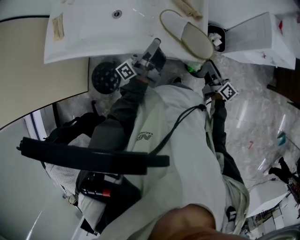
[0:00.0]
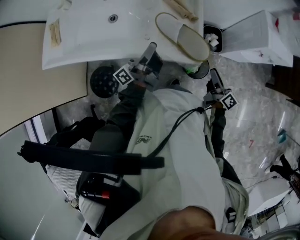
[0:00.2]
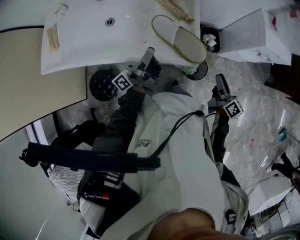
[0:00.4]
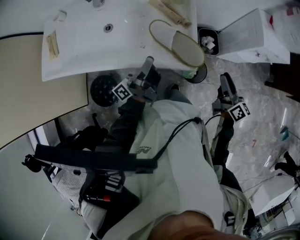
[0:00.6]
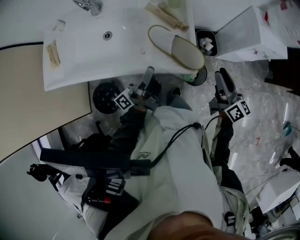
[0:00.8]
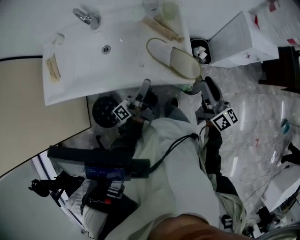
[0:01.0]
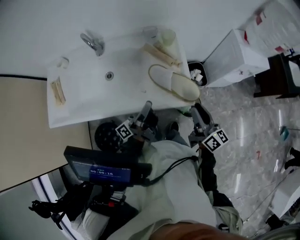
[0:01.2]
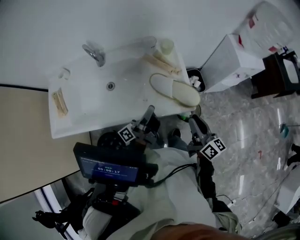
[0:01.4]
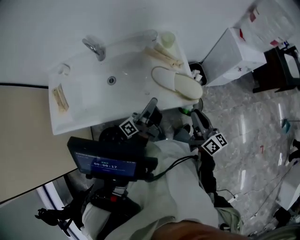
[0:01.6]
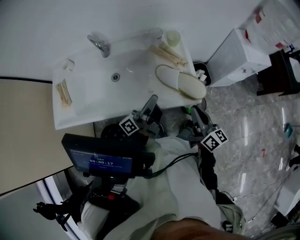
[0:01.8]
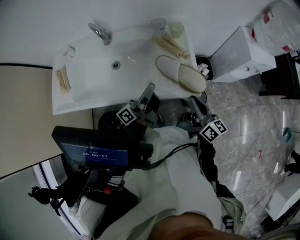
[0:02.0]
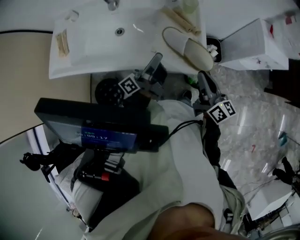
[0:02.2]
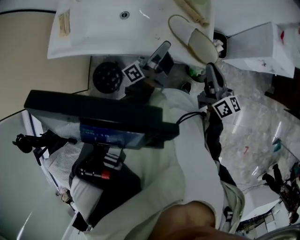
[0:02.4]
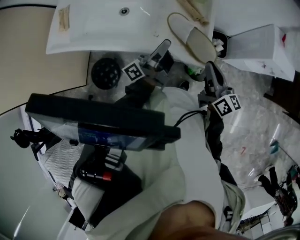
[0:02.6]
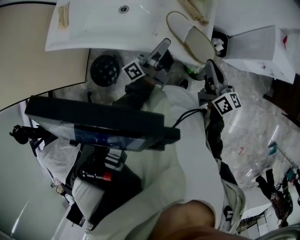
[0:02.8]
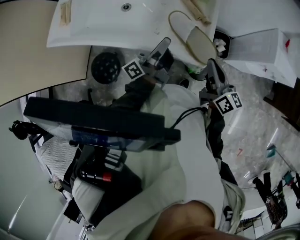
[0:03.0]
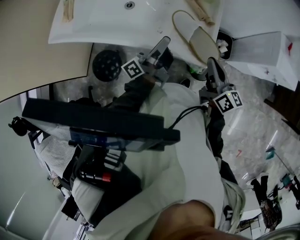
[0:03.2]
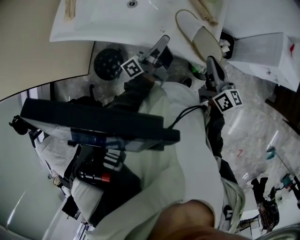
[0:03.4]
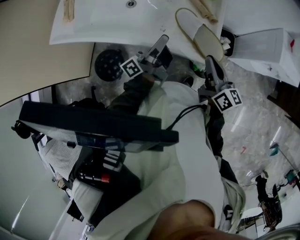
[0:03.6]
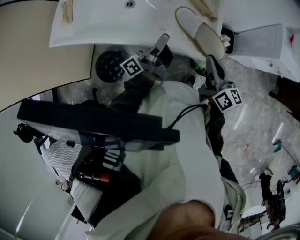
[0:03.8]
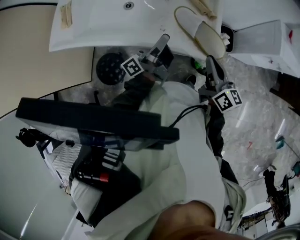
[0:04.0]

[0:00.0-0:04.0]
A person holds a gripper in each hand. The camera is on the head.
0:00.0 to 0:01.4: The right gripper goes roughly 15 cm upward, and swivels about 20 degrees.
0:01.4 to 0:02.6: The right gripper ends up some 5 cm from where it was, and closes up.

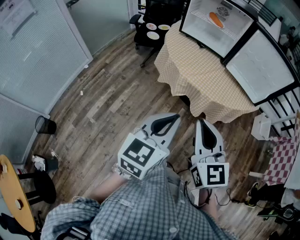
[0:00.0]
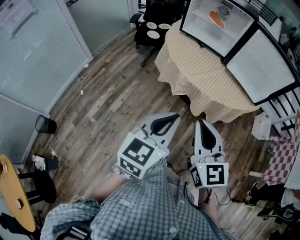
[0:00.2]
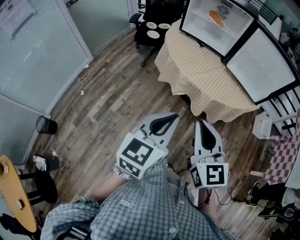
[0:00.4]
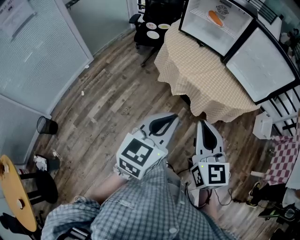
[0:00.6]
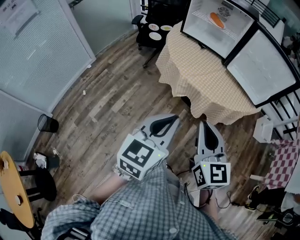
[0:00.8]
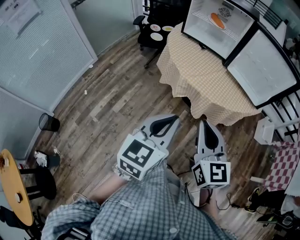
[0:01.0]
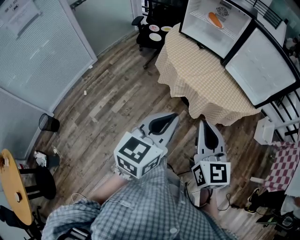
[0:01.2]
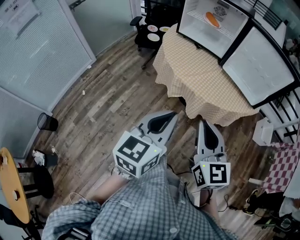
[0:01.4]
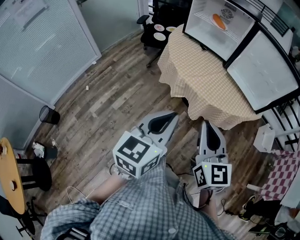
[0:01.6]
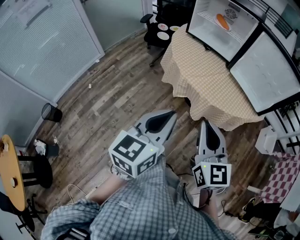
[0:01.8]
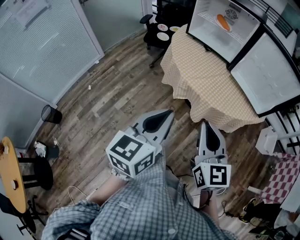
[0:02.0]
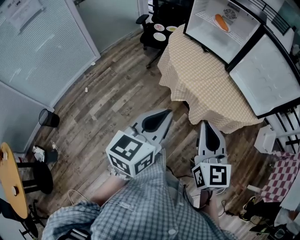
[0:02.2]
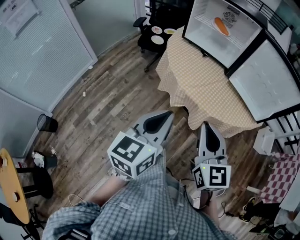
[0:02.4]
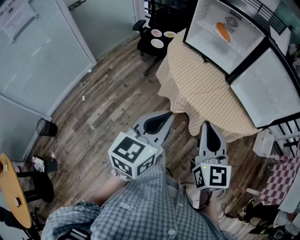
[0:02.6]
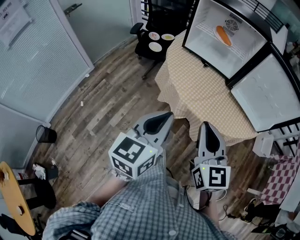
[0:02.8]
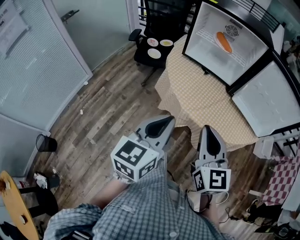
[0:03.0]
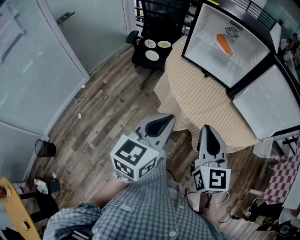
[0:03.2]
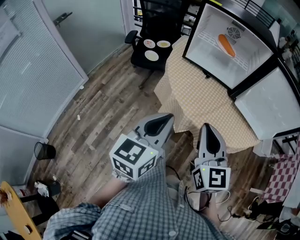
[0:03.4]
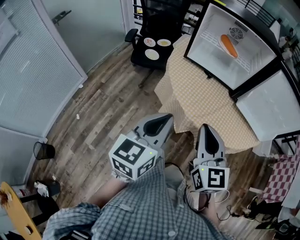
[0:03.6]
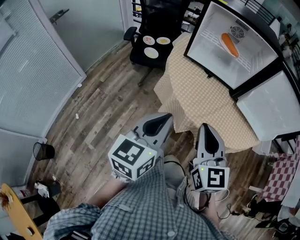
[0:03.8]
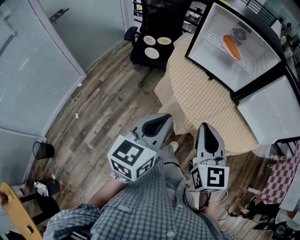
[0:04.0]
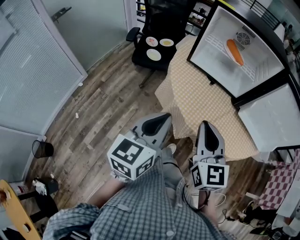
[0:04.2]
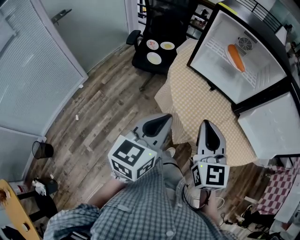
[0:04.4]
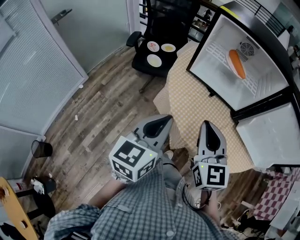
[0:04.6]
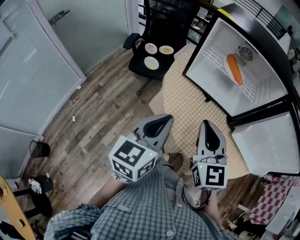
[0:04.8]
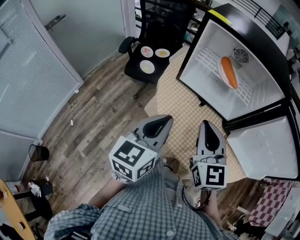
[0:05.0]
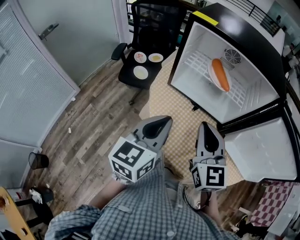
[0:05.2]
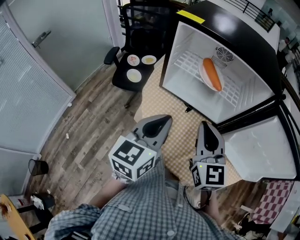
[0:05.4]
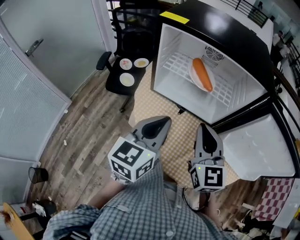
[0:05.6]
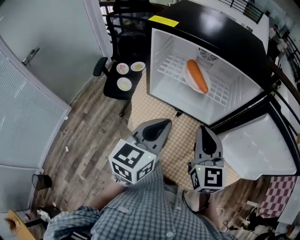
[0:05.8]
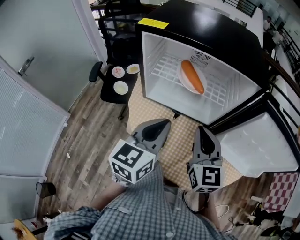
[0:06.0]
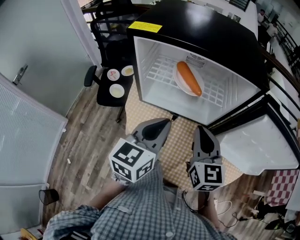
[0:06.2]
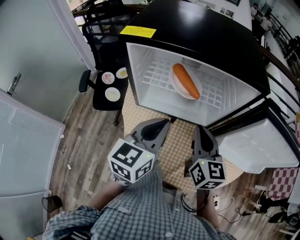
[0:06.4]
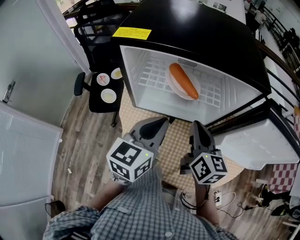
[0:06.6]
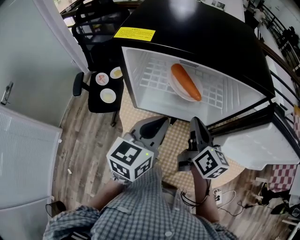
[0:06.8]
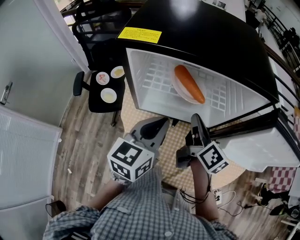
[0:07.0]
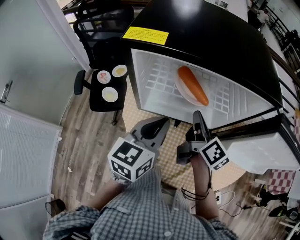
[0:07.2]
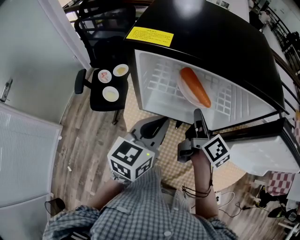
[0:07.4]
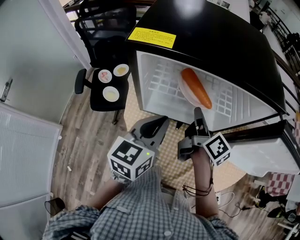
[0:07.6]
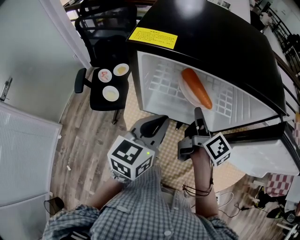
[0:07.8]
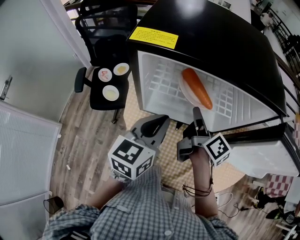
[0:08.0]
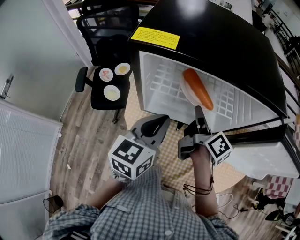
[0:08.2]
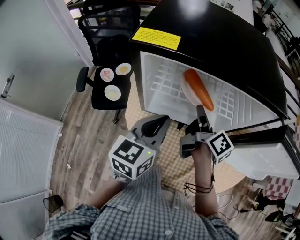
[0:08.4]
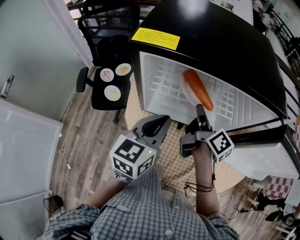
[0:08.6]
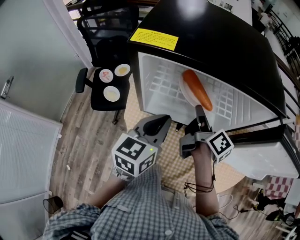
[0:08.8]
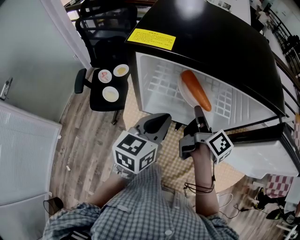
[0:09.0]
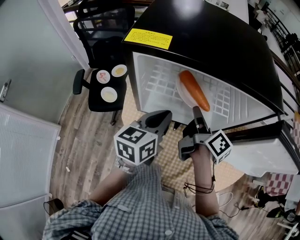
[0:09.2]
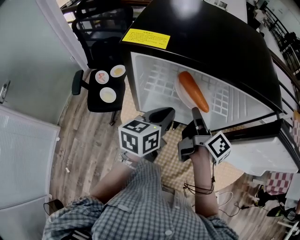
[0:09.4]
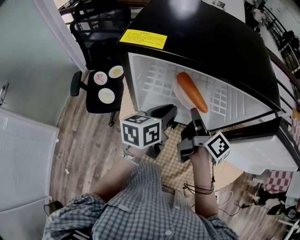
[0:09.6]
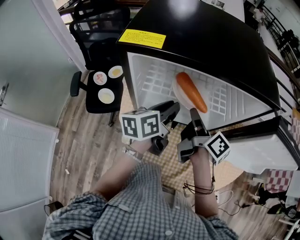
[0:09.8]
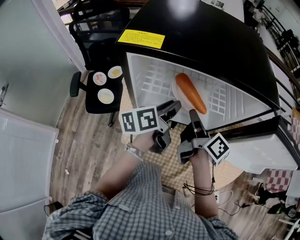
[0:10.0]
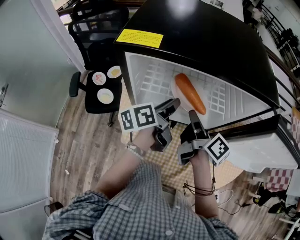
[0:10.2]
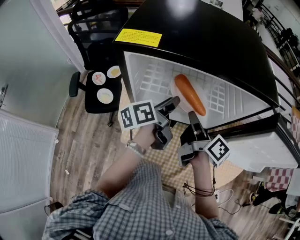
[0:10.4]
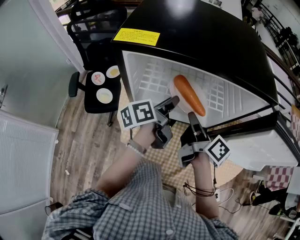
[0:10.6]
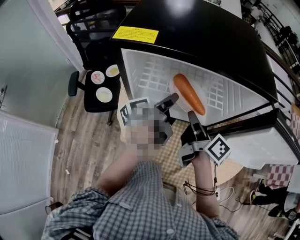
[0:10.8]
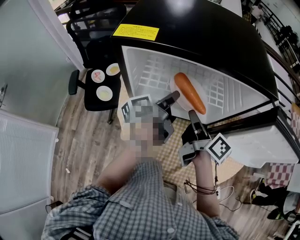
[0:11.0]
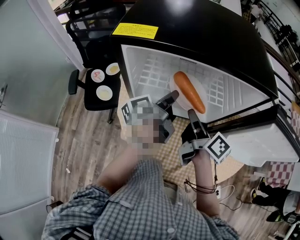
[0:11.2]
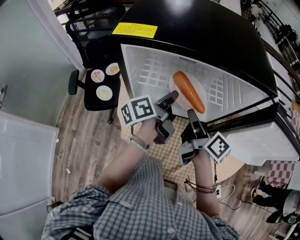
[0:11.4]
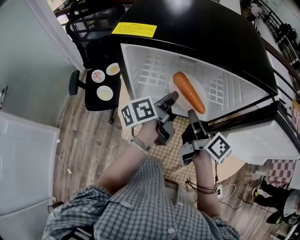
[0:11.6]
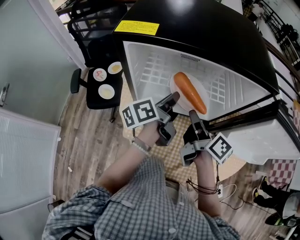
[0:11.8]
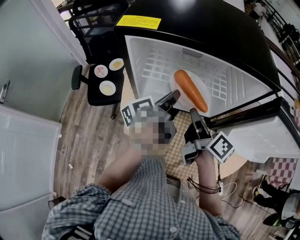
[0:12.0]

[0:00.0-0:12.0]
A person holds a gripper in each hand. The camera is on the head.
0:00.0 to 0:01.6: The right gripper moves to the right, approximately 10 cm. Meanwhile the left gripper heads to the right, covering roughly 5 cm.
0:01.6 to 0:03.0: Both grippers travel together forward and to the left, some 20 cm.
0:03.0 to 0:04.4: The two grippers go approximately 15 cm forward and to the left.
0:04.4 to 0:06.0: Both grippers move forward and to the right, about 25 cm.
0:06.0 to 0:07.6: The left gripper travels forward and to the left by about 10 cm. The right gripper heads forward, covering approximately 15 cm, and rolls clockwise, seen from behind, by about 70 degrees.
0:07.6 to 0:09.0: The grippers make only small movements.
0:09.0 to 0:10.4: The left gripper shifts about 10 cm forward, rotates around the line of its fingers by about 50 degrees, counterclockwise from behind, and opens.
0:10.4 to 0:12.0: There are only small adjustments of the grippers.

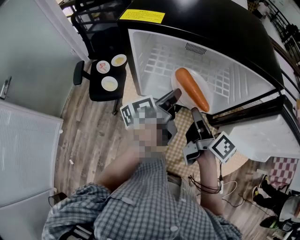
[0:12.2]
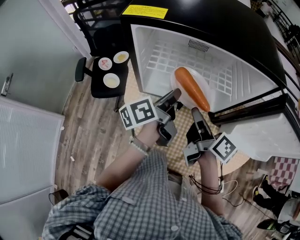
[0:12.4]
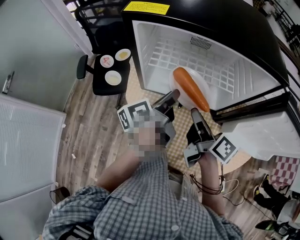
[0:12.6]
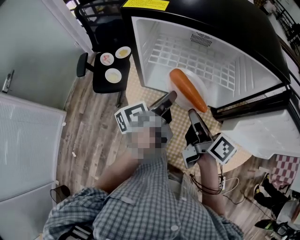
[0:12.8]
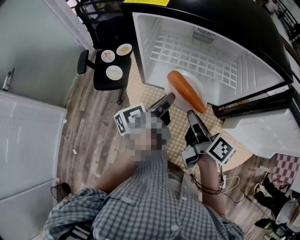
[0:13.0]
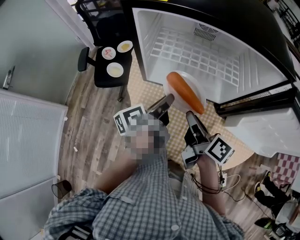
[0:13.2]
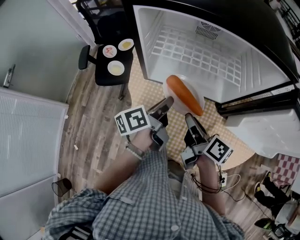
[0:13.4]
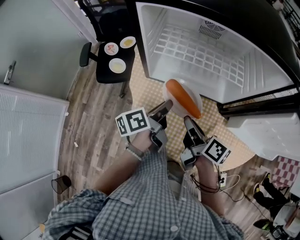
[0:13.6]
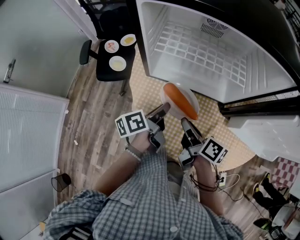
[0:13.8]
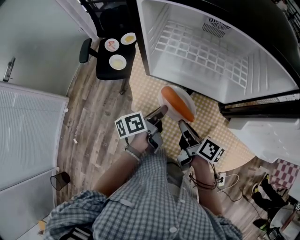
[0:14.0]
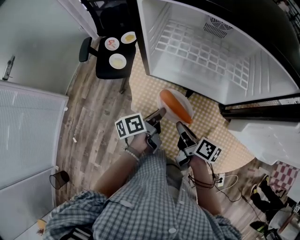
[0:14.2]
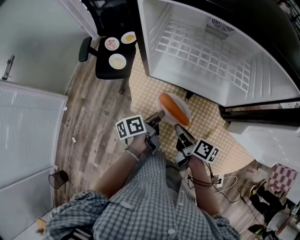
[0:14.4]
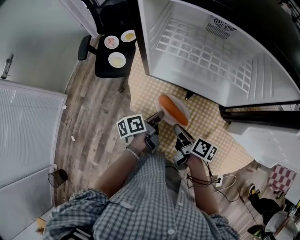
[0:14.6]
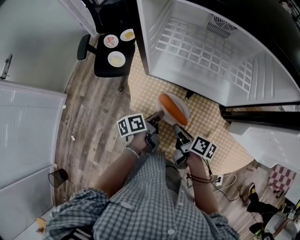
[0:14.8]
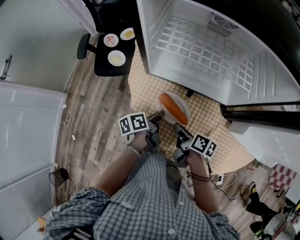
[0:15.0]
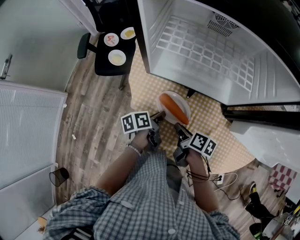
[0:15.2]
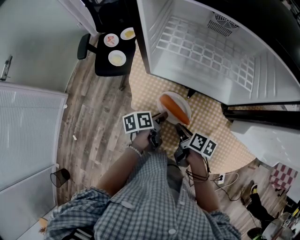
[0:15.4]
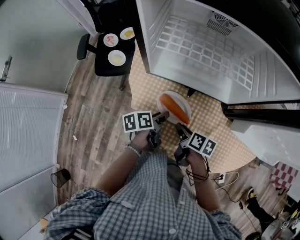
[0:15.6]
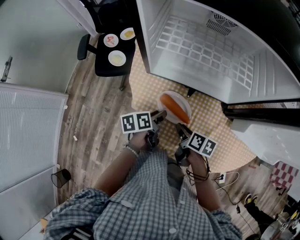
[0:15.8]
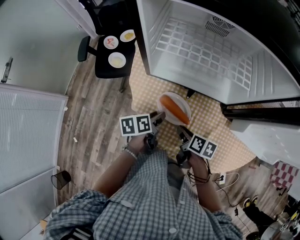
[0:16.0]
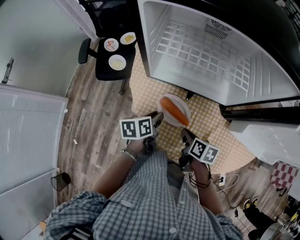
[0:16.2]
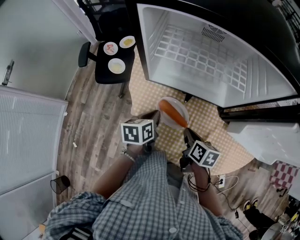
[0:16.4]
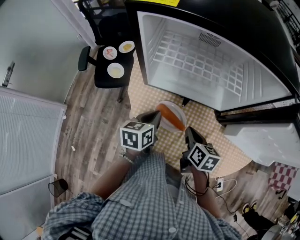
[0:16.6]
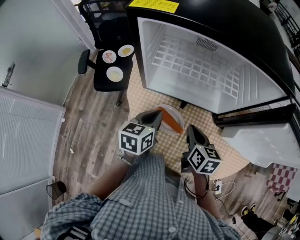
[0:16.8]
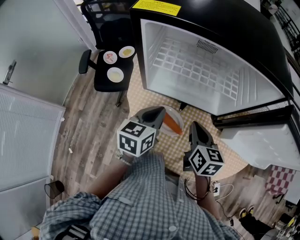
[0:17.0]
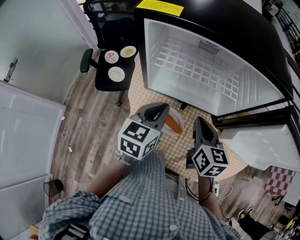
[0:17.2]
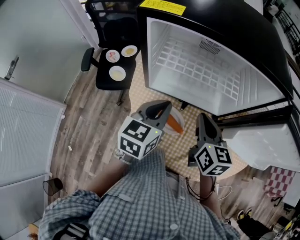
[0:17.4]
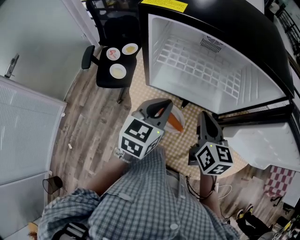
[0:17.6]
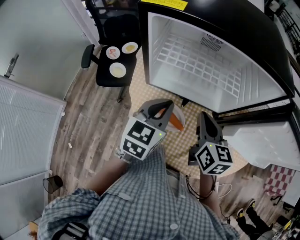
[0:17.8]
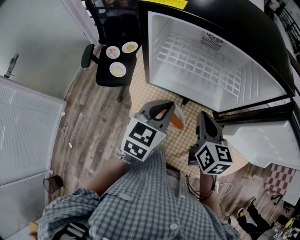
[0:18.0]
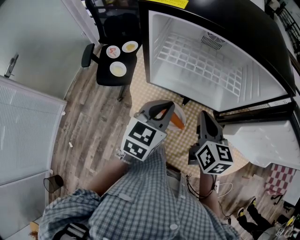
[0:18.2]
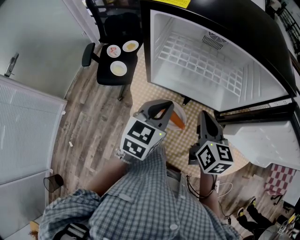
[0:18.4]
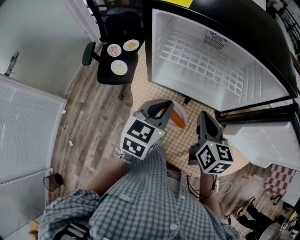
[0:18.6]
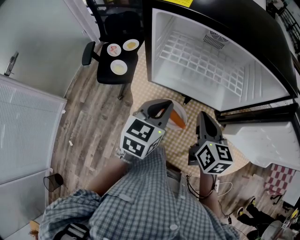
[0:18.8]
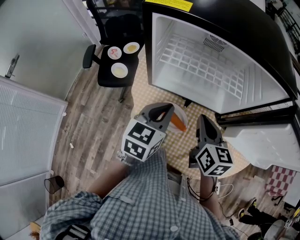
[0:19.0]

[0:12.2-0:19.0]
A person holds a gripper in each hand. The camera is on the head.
0:12.2 to 0:13.6: The grippers both shift downward and backward by roughly 10 cm.
0:13.6 to 0:15.0: The grippers both shift downward by about 15 cm. The right gripper rotates approximately 20 degrees.
0:15.0 to 0:16.2: The left gripper swivels roughly 30 degrees; the right gripper rotates about 20 degrees.
0:16.2 to 0:17.6: Both grippers travel together upward, some 20 cm. The right gripper swivels approximately 40 degrees. The left gripper rotates around the line of its fingers by some 40 degrees, clockwise from behind, and closes its fingers.
0:17.6 to 0:19.0: The grippers stay close to where they were, moving slightly.

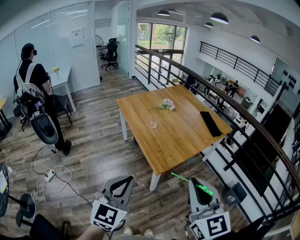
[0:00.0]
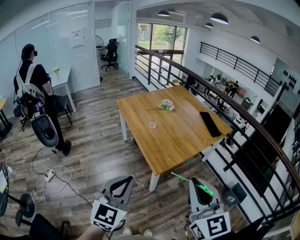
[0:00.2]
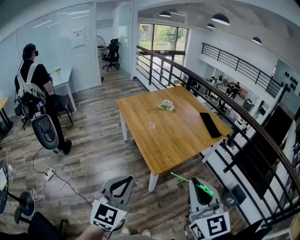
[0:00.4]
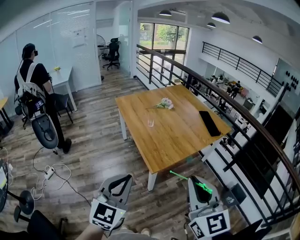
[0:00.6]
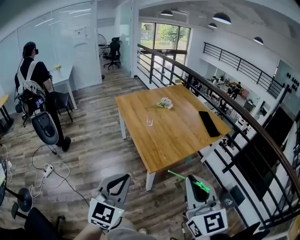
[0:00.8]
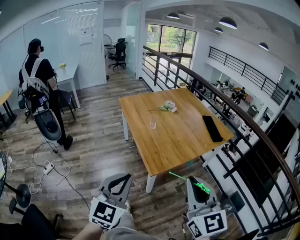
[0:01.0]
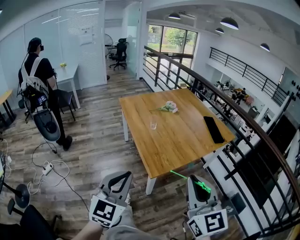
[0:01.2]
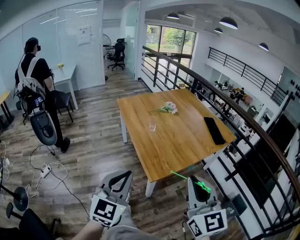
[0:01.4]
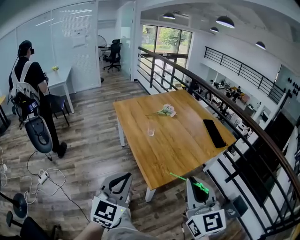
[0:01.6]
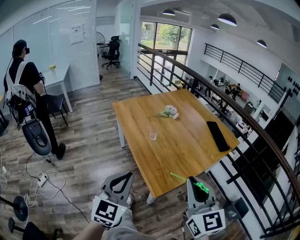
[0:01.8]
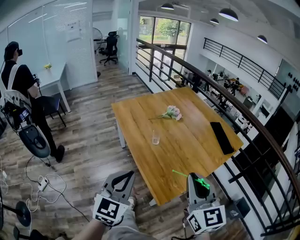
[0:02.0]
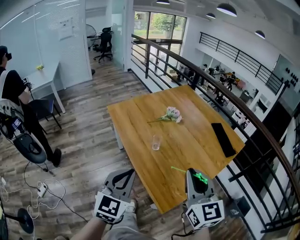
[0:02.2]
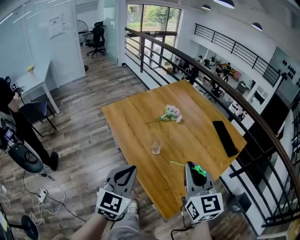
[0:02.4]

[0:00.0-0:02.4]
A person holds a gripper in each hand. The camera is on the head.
0:00.0 to 0:01.2: The right gripper shifts by roughly 5 cm. The left gripper changes place by roughly 5 cm.
0:01.2 to 0:02.4: The grippers both shift forward by roughly 35 cm.
